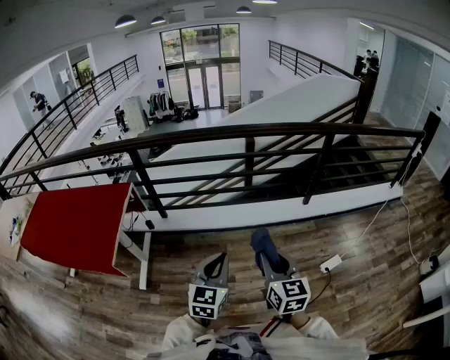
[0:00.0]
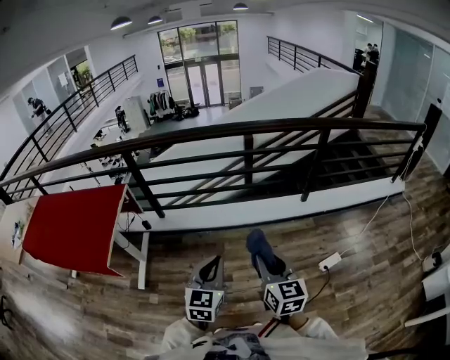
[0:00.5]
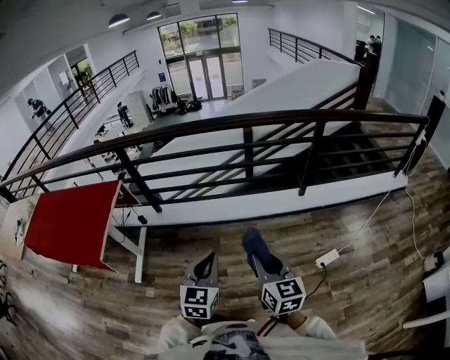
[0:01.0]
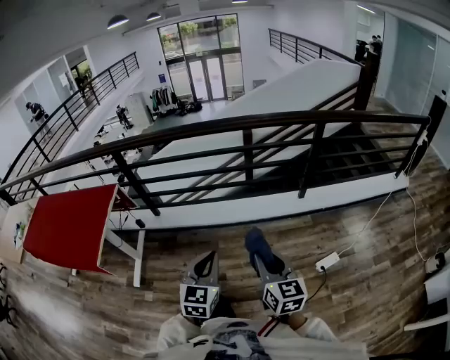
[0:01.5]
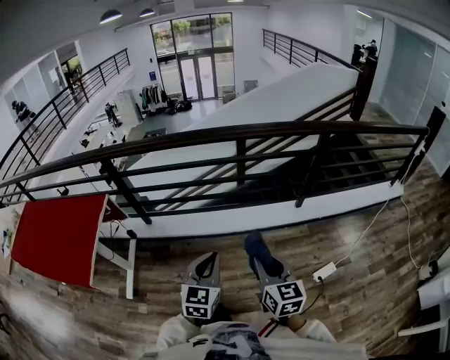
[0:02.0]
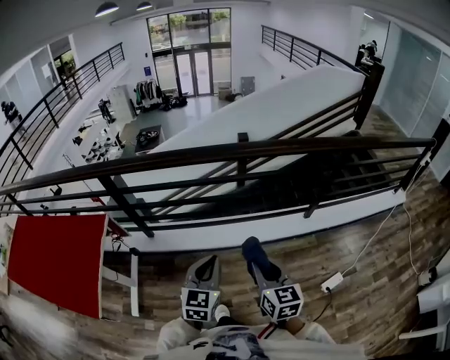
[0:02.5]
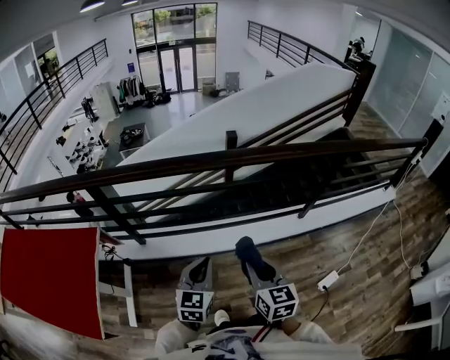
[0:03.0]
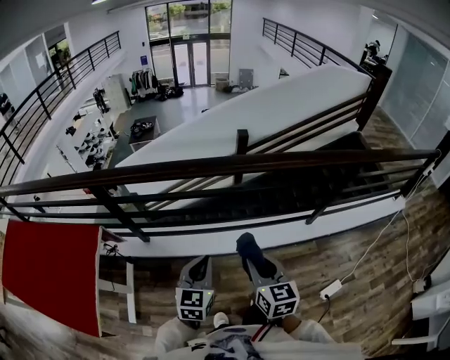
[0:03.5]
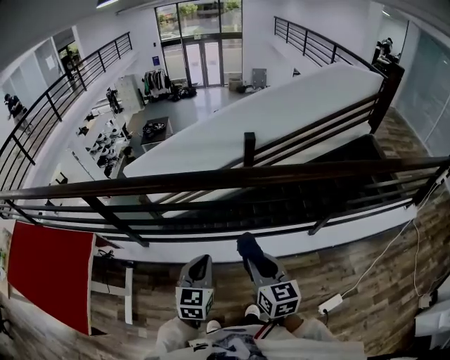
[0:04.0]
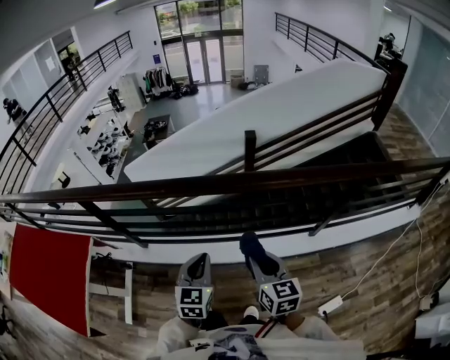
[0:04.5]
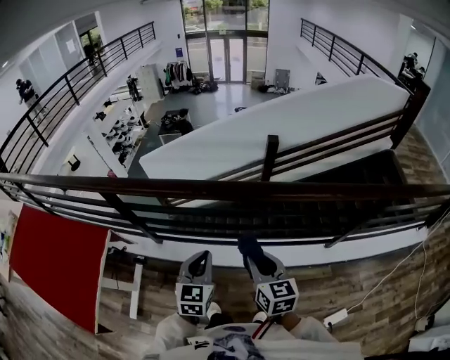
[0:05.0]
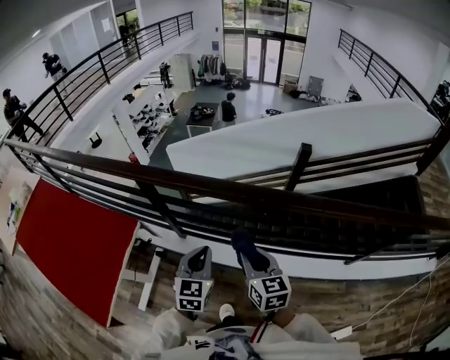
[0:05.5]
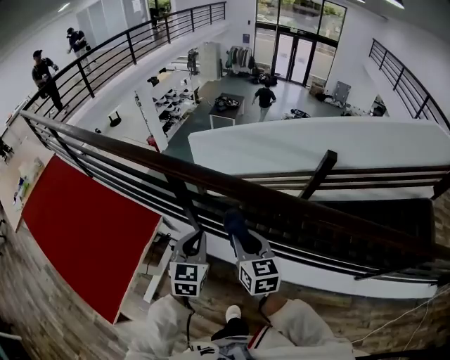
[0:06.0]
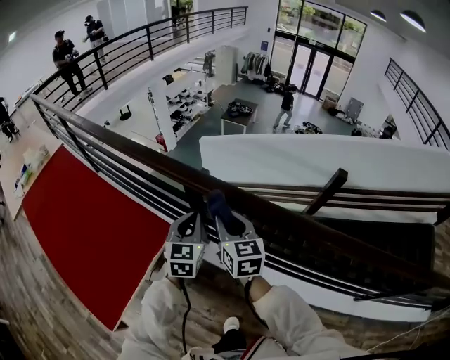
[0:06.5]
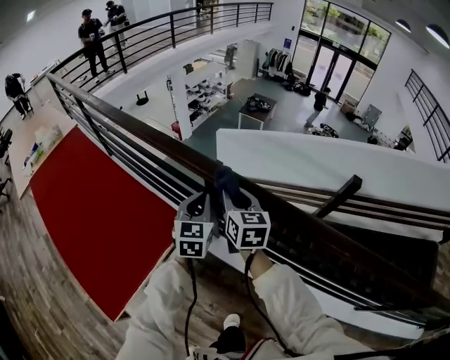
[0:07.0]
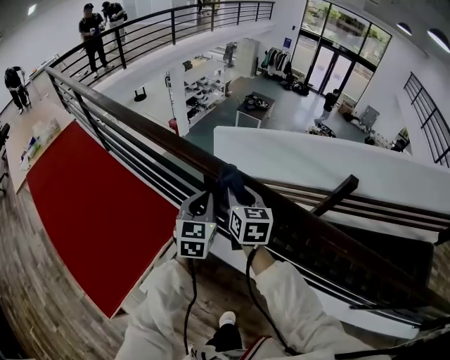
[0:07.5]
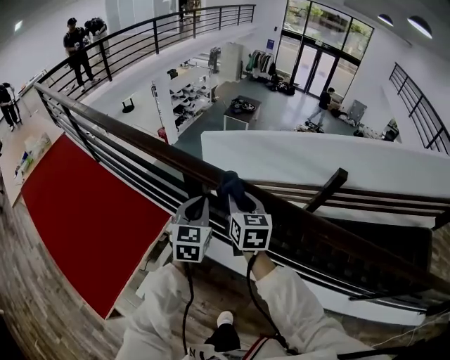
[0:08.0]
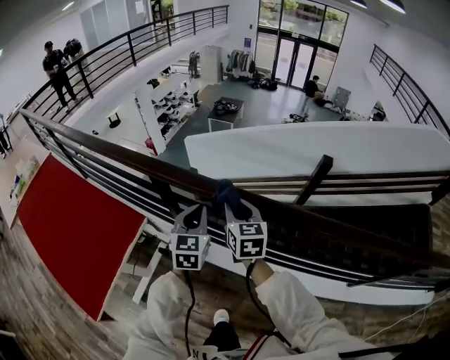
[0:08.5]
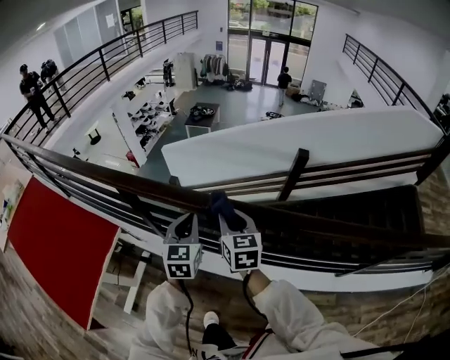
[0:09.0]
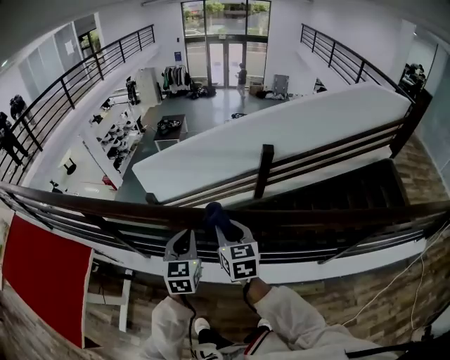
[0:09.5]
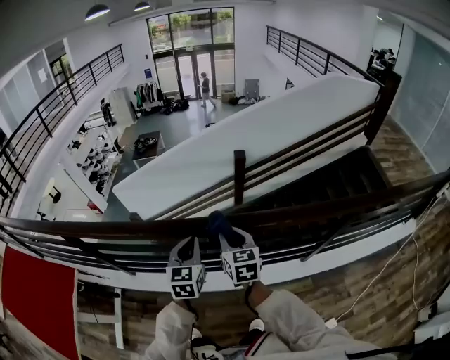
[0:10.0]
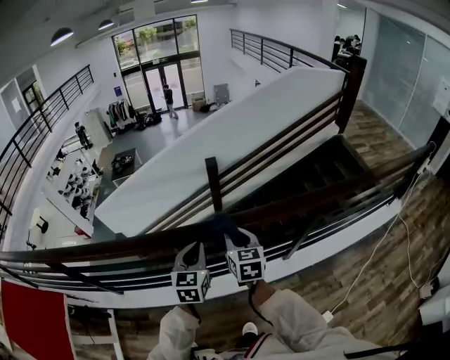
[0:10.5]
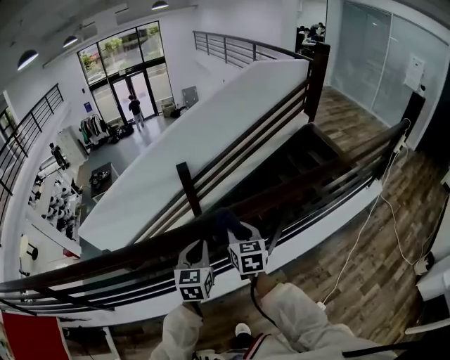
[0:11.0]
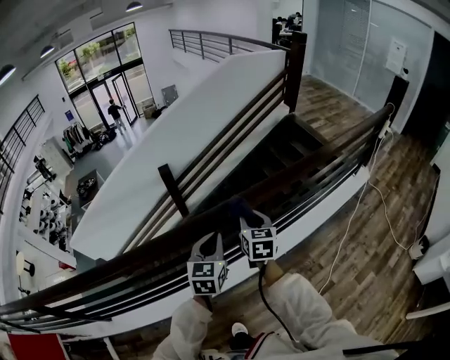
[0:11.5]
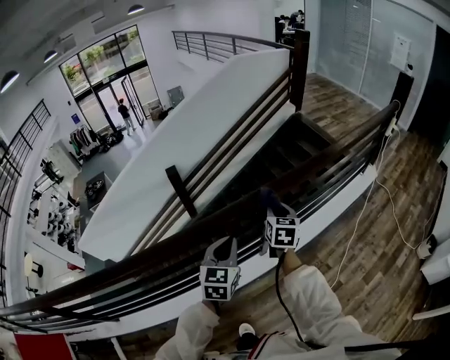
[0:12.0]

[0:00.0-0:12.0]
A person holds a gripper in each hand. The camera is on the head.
0.0 to 2.0 s: Both grippers travel together forward and to the right, roughly 15 cm.
2.0 to 4.0 s: Both grippers move forward, roughly 30 cm.
4.0 to 6.0 s: Both grippers are carried to the left and forward, approximately 40 cm. The right gripper swivels about 20 degrees; the left gripper changes its angle by approximately 20 degrees.
6.0 to 8.0 s: Both grippers travel together forward, about 15 cm.
8.0 to 10.0 s: The two grippers travel together, roughly 60 cm. The right gripper rotates roughly 20 degrees. Meanwhile the left gripper changes its angle by roughly 30 degrees.
10.0 to 12.0 s: Both grippers are carried approximately 50 cm. The right gripper turns by roughly 40 degrees. The left gripper changes its angle by about 40 degrees.

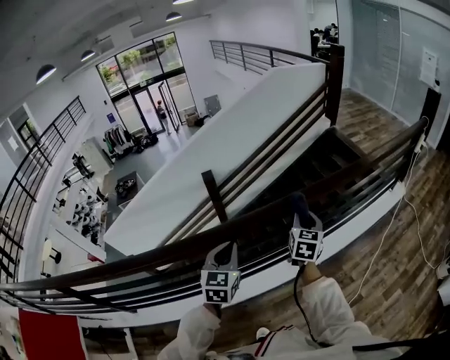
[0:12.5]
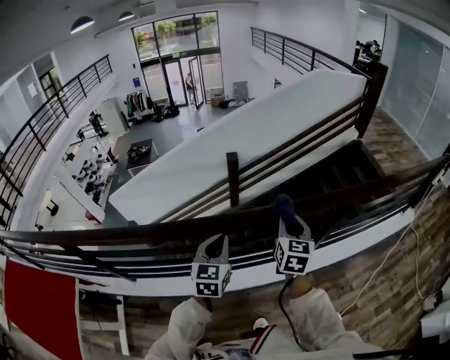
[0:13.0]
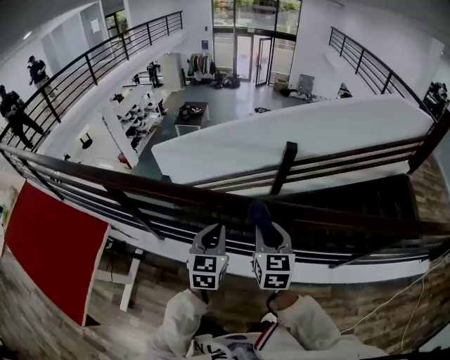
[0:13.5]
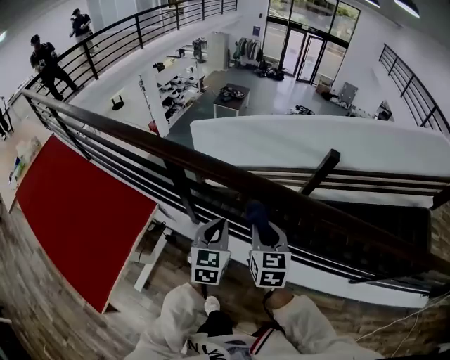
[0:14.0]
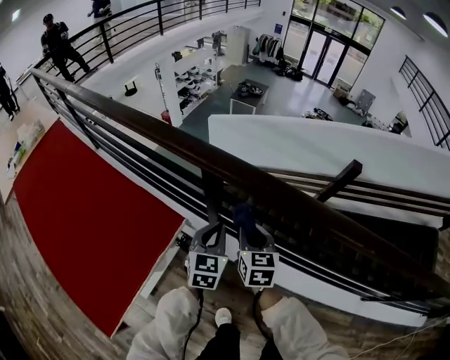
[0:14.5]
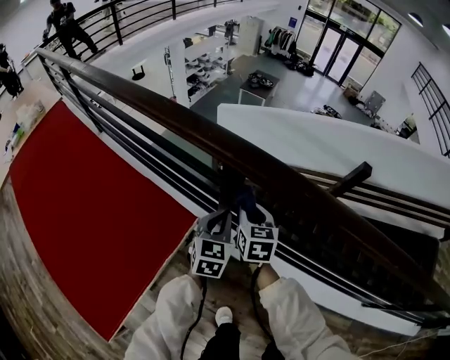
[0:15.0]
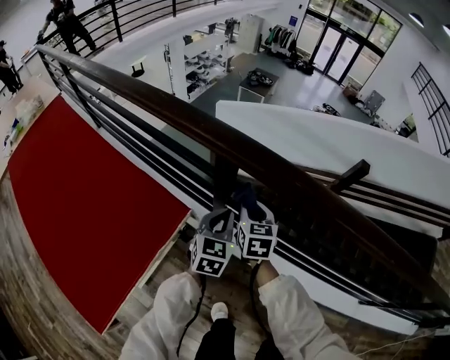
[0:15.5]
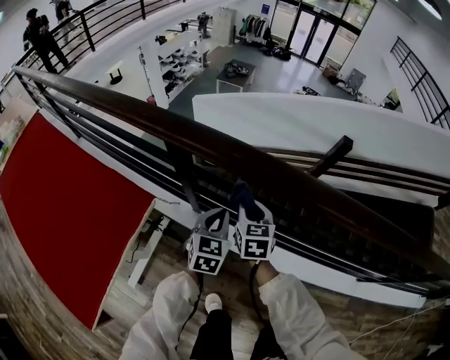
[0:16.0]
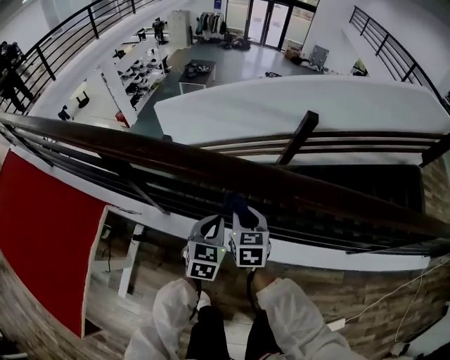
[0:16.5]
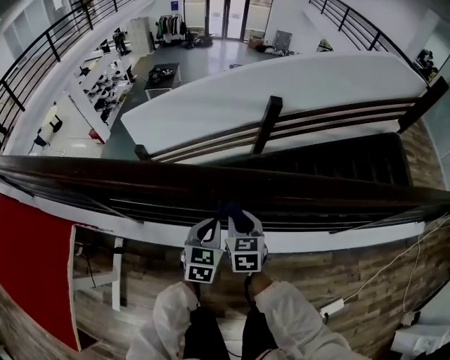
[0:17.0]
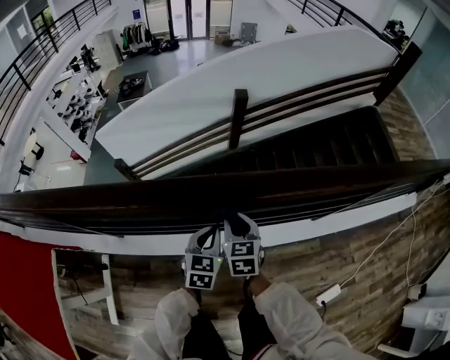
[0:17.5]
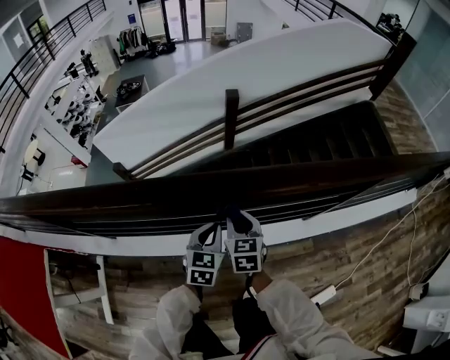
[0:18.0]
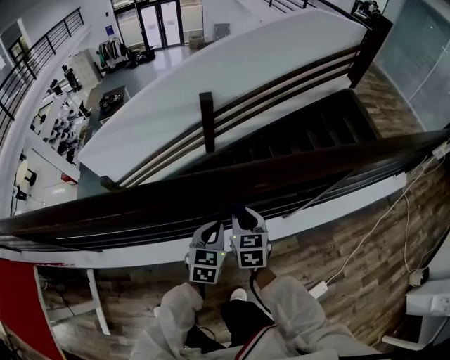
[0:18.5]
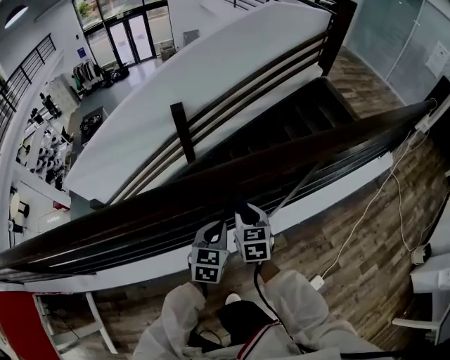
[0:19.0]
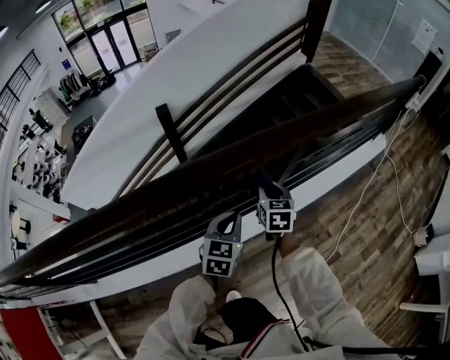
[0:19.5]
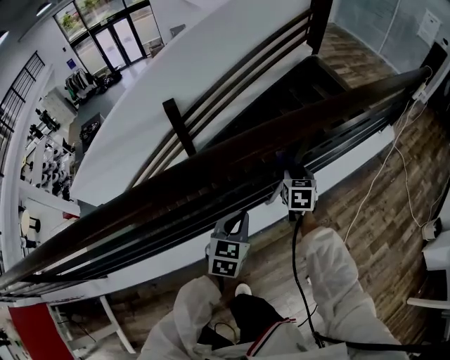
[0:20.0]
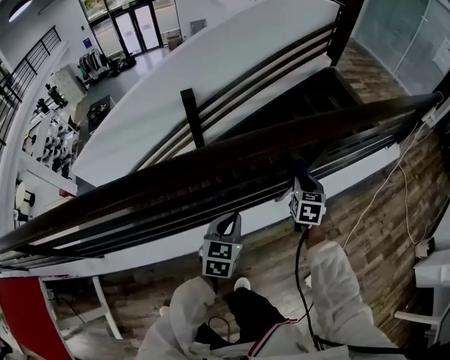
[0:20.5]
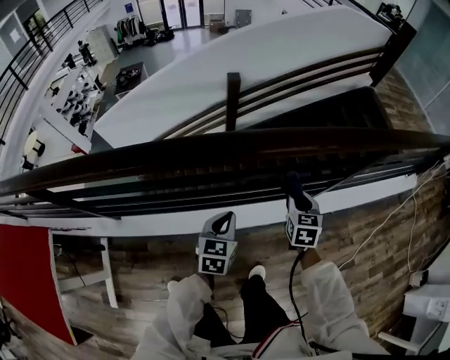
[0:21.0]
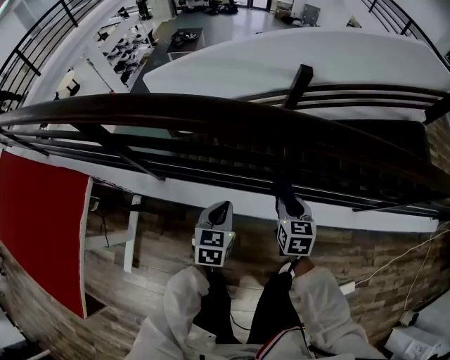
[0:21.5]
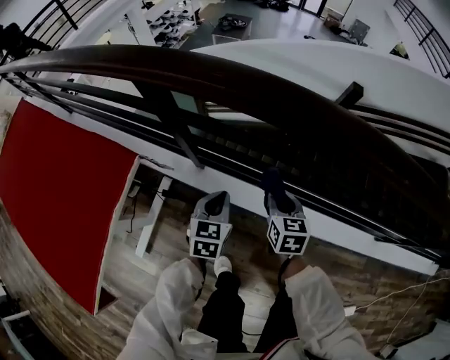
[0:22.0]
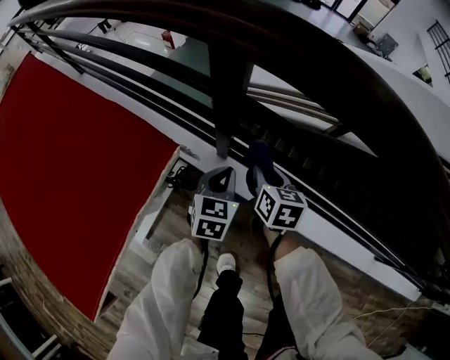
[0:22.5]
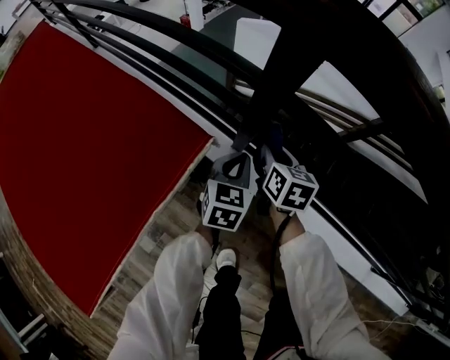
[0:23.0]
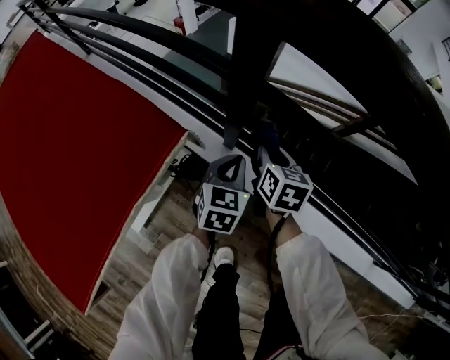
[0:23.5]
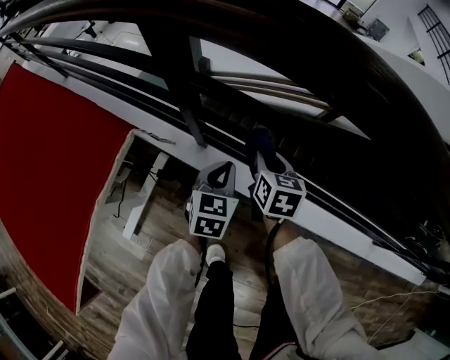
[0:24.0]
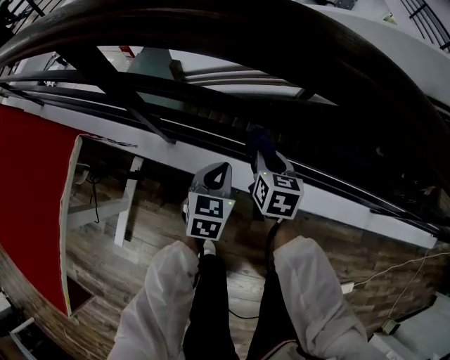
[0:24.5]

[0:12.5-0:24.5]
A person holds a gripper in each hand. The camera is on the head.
12.5 to 14.5 s: Both grippers are carried some 1 m. The right gripper rotates approximately 60 degrees. Meanwhile the left gripper swivels some 50 degrees.
14.5 to 16.5 s: The two grippers go about 25 cm to the right.
16.5 to 18.5 s: Both grippers are carried to the right, approximately 50 cm. The right gripper turns by roughly 20 degrees. The left gripper changes its angle by approximately 20 degrees.
18.5 to 20.5 s: The left gripper travels to the right by roughly 10 cm. The right gripper travels to the right and forward by roughly 30 cm, and rotates roughly 20 degrees.
20.5 to 22.5 s: The pair of grippers is taken approximately 1 m. The right gripper rotates some 60 degrees. The left gripper changes its angle by roughly 50 degrees.
22.5 to 24.5 s: Both grippers move to the right, about 25 cm.

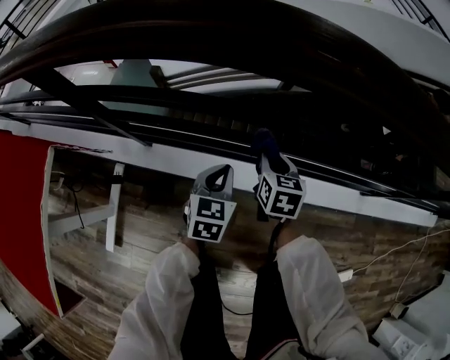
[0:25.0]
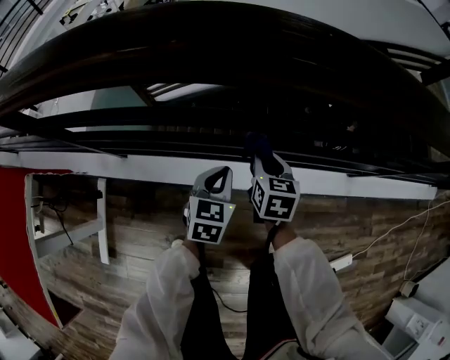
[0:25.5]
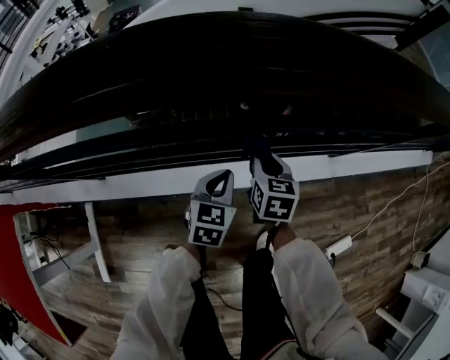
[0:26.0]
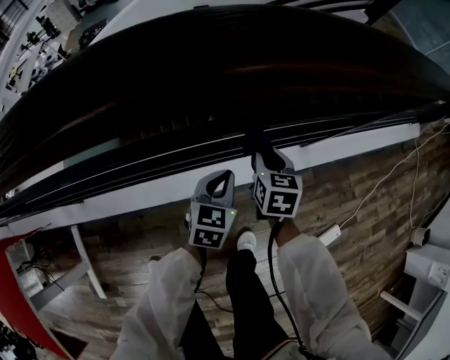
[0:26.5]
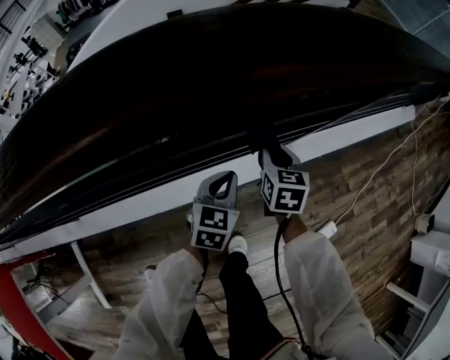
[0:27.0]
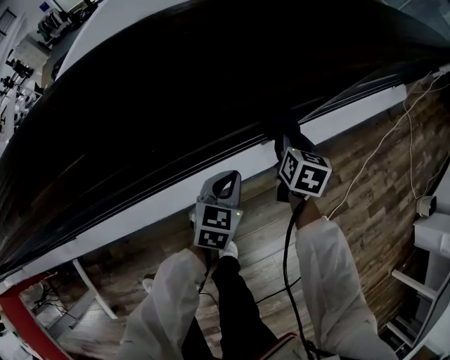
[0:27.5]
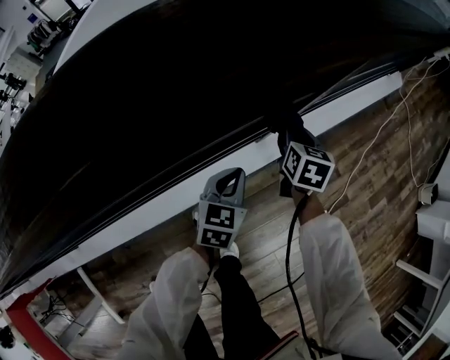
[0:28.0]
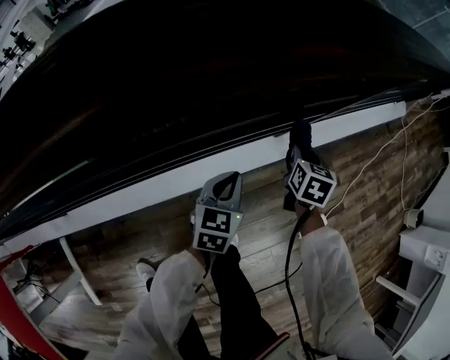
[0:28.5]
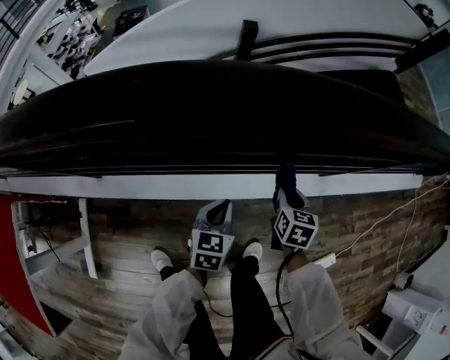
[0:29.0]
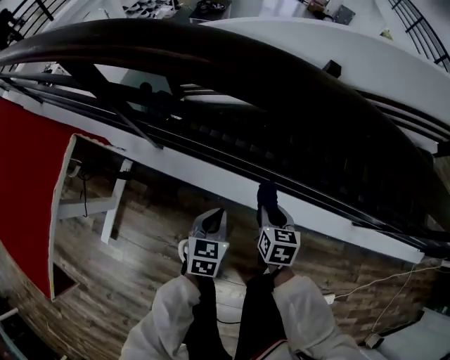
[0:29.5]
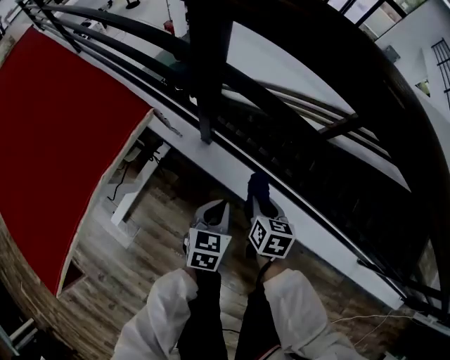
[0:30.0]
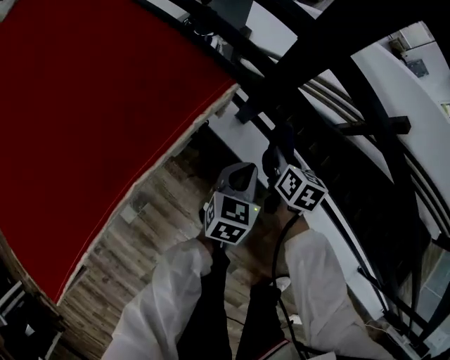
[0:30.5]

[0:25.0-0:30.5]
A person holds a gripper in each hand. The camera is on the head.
25.0 to 27.0 s: The two grippers travel together, roughly 50 cm. The right gripper rotates some 30 degrees. The left gripper rotates approximately 30 degrees.
27.0 to 28.5 s: The right gripper heads to the right, covering some 10 cm, while the left gripper moves approximately 15 cm to the right and comes back.
28.5 to 30.5 s: The two grippers travel together, approximately 1 m. The right gripper turns by about 60 degrees; the left gripper changes its angle by roughly 60 degrees.
